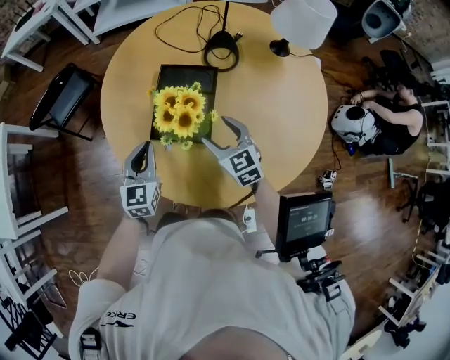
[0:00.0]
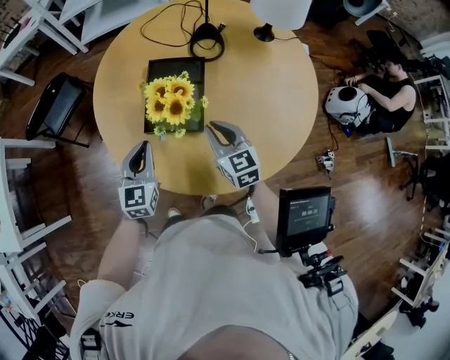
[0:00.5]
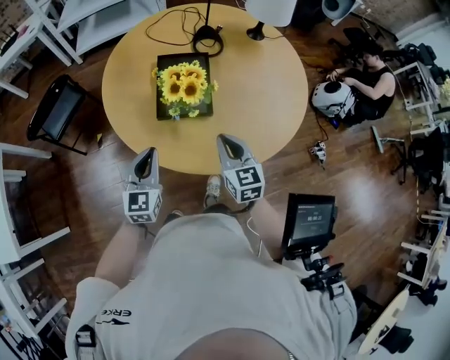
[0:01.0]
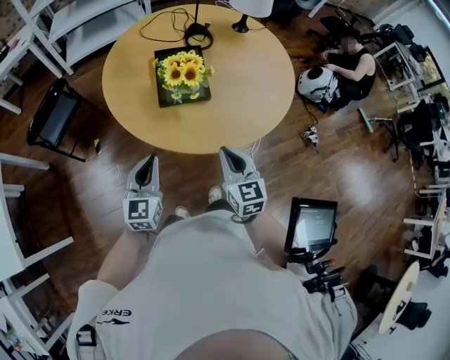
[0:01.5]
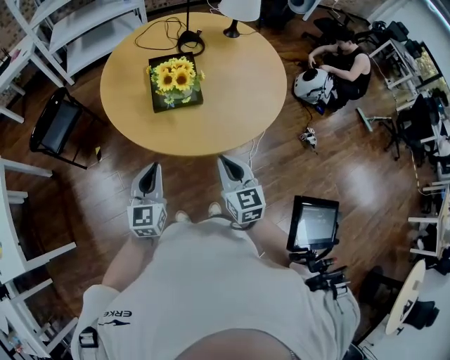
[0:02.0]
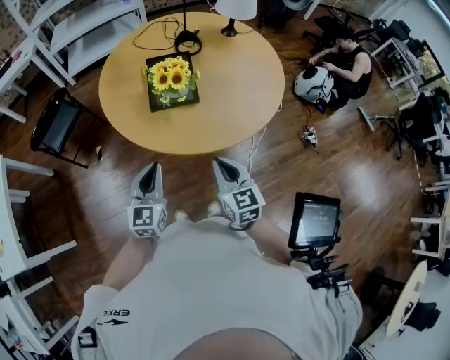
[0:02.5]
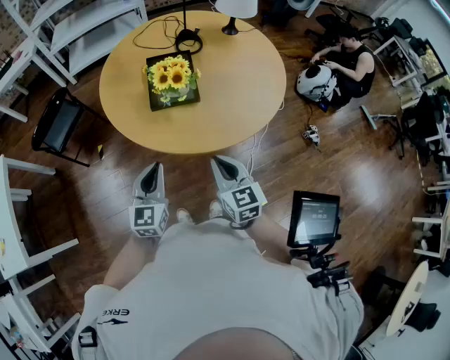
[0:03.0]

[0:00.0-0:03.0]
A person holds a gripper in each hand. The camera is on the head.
0:00.0 to 0:01.5: The left gripper shifts by some 20 cm, and changes its angle by some 20 degrees; the right gripper shifts by approximately 30 cm, turns by approximately 30 degrees, and closes.
0:01.5 to 0:03.0: The left gripper goes some 5 cm to the right.

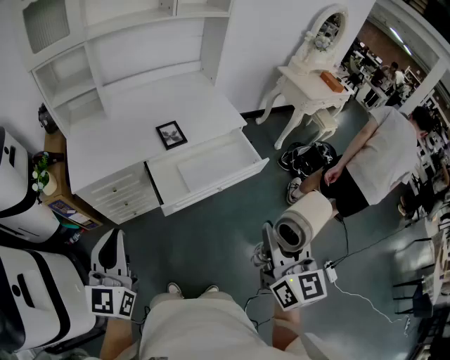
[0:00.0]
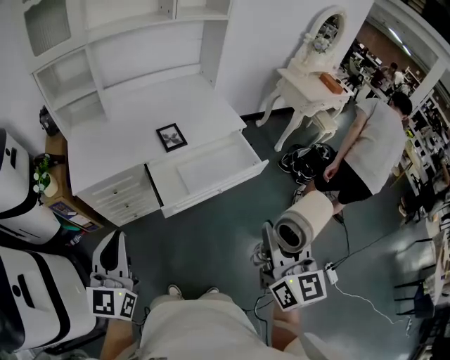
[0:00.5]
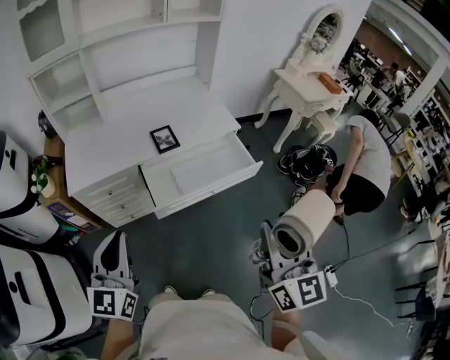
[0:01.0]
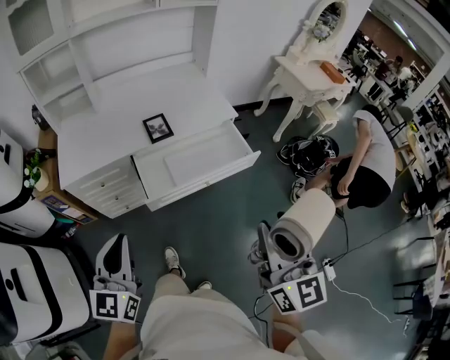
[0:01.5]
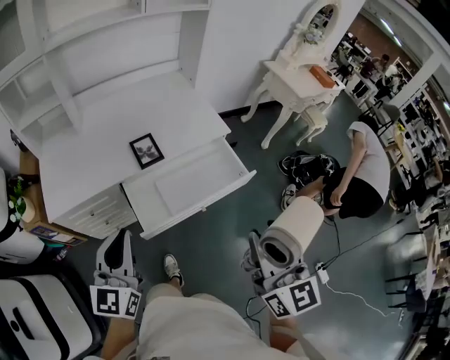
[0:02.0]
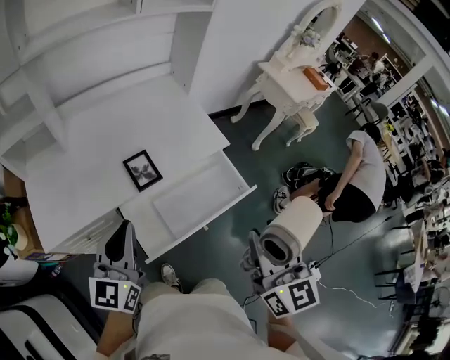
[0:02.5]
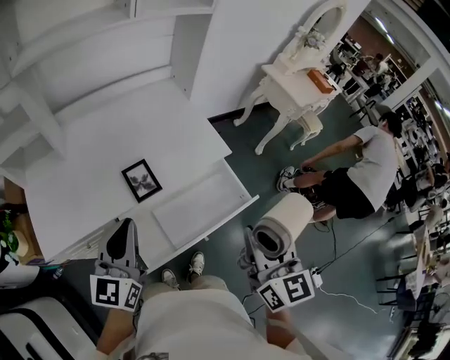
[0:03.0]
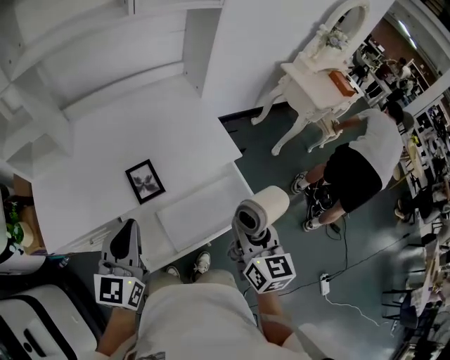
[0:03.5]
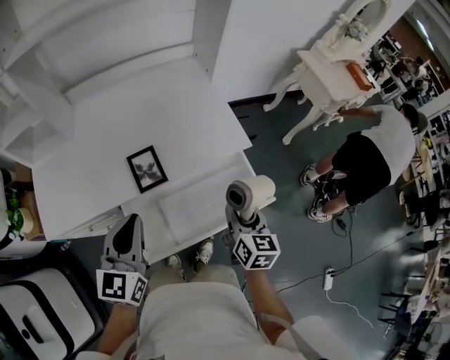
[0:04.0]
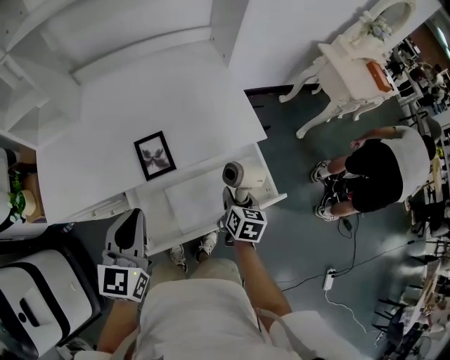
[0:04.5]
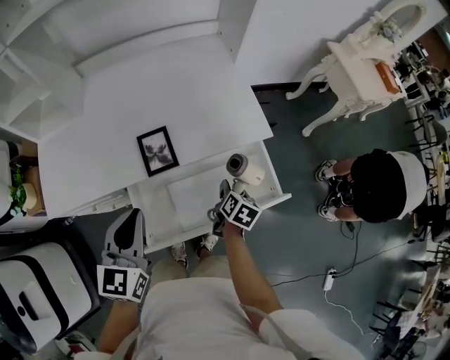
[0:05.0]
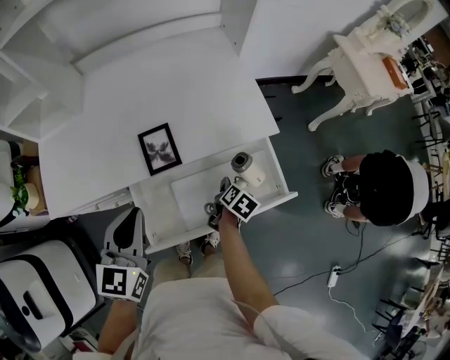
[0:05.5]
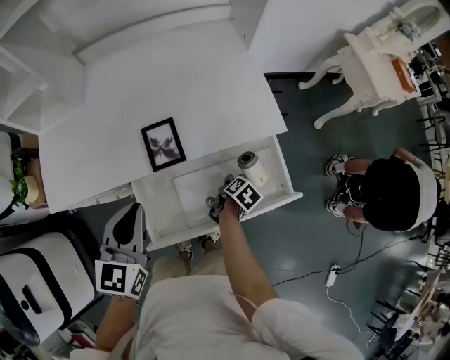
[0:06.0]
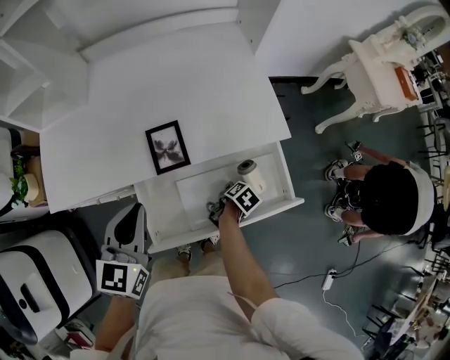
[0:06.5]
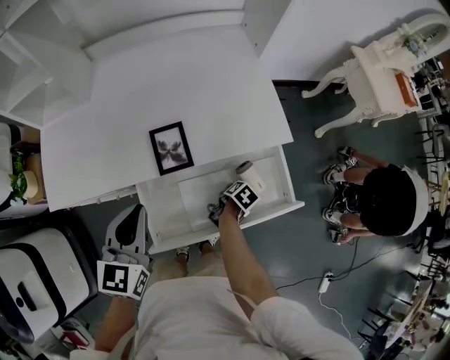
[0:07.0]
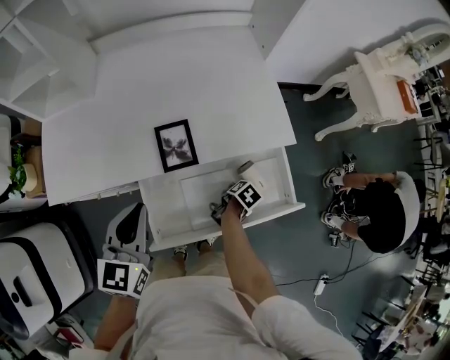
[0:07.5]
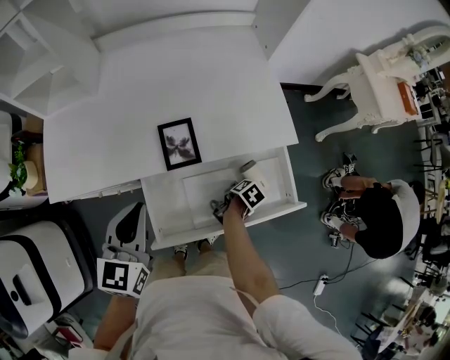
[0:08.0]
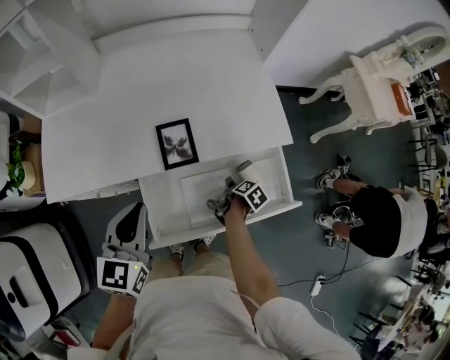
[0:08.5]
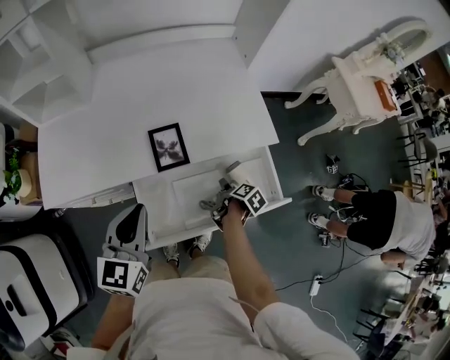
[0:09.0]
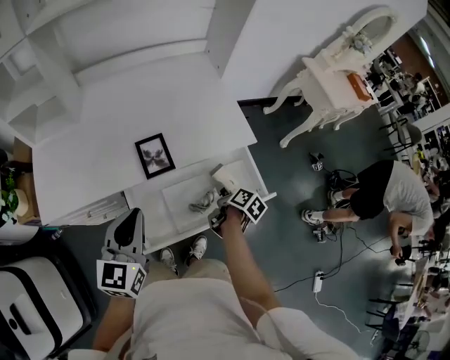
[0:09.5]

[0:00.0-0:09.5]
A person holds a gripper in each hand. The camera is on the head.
0:00.0 to 0:02.0: The left gripper travels forward and to the right by about 15 cm. The right gripper shifts approximately 10 cm forward.
0:02.0 to 0:04.0: The right gripper travels forward and downward by some 35 cm, and changes its angle by roughly 30 degrees, while the left gripper goes about 20 cm forward.
0:04.0 to 0:05.5: The right gripper is displaced downward by roughly 20 cm, and swivels about 40 degrees.
0:05.5 to 0:07.5: The right gripper goes about 5 cm downward.
0:07.5 to 0:09.5: The left gripper moves roughly 5 cm. The right gripper goes approximately 15 cm upward, changes its angle by about 30 degrees, and opens and closes again.

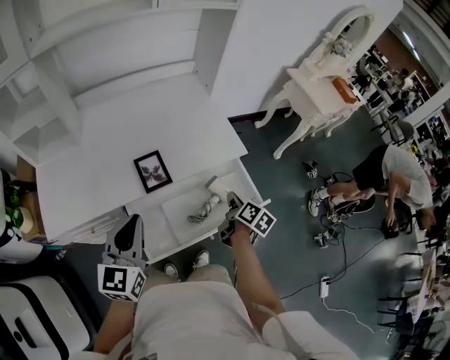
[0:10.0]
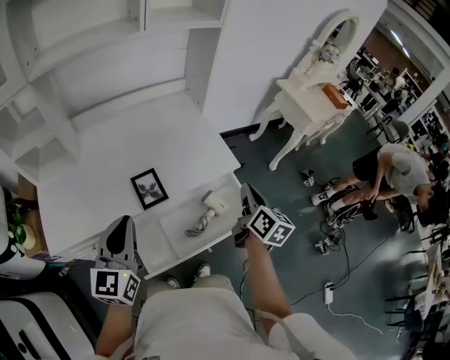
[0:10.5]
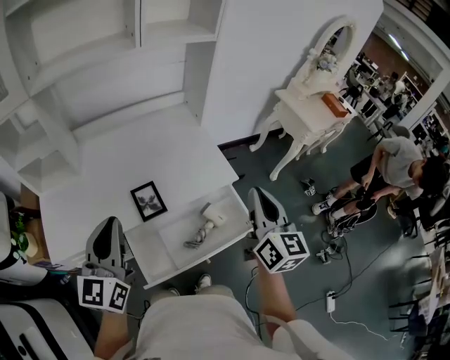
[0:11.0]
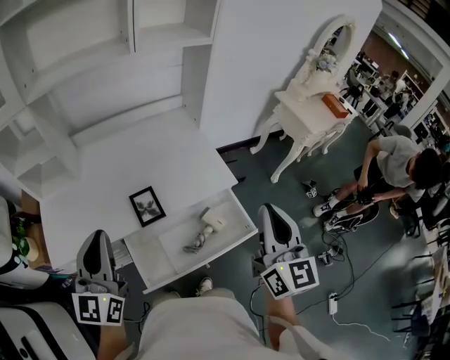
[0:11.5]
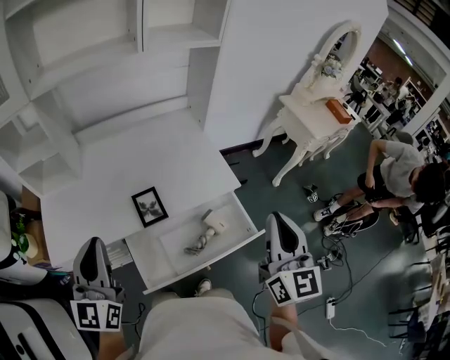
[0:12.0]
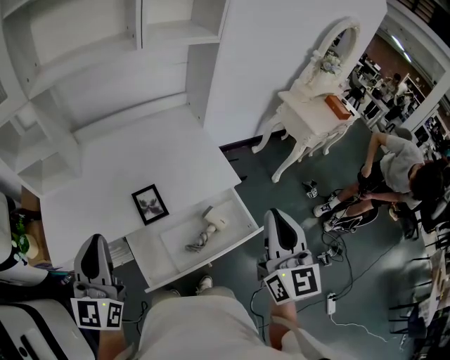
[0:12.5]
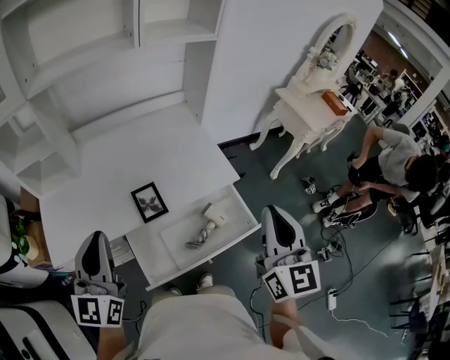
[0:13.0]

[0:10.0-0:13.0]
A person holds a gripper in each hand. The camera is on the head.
0:10.0 to 0:11.5: The right gripper travels upward by some 35 cm, and points its fingers about 30 degrees further upward. Meanwhile the left gripper heads upward, covering some 15 cm.
0:11.5 to 0:13.0: The grippers make only small movements.

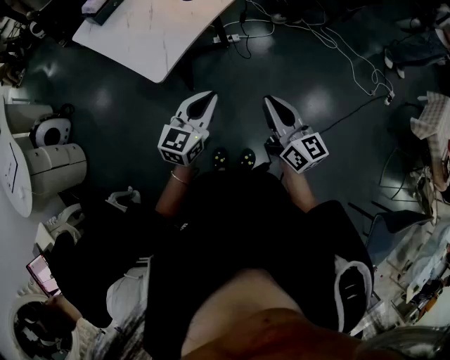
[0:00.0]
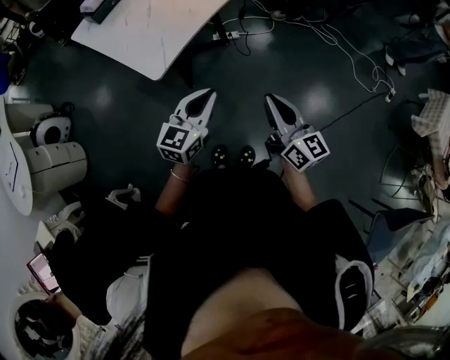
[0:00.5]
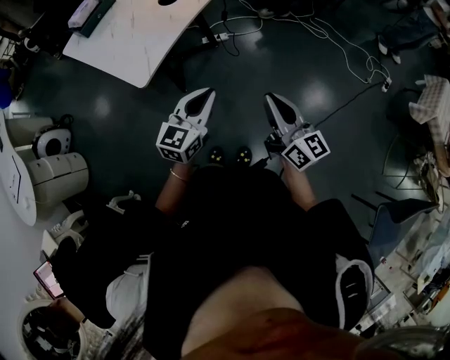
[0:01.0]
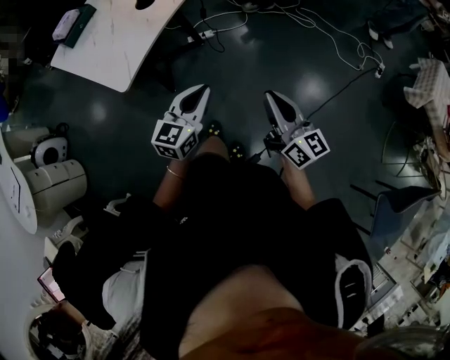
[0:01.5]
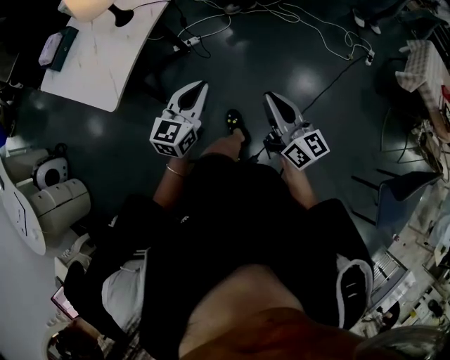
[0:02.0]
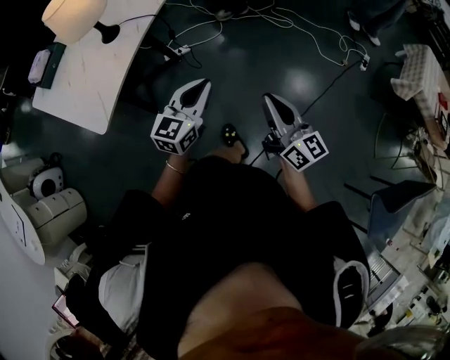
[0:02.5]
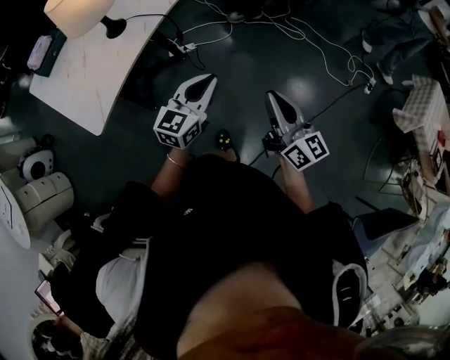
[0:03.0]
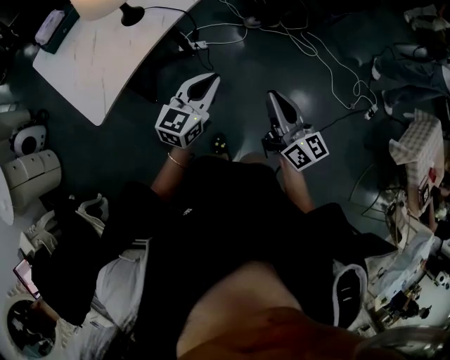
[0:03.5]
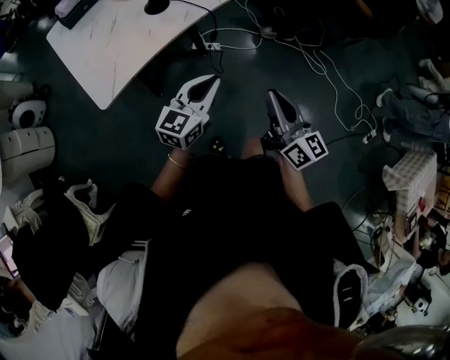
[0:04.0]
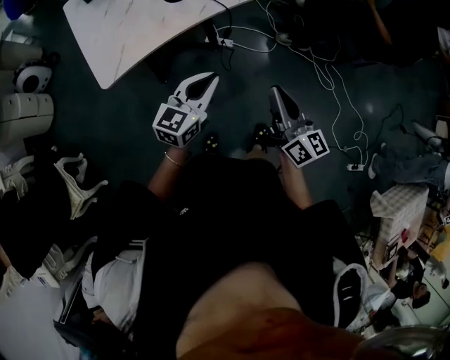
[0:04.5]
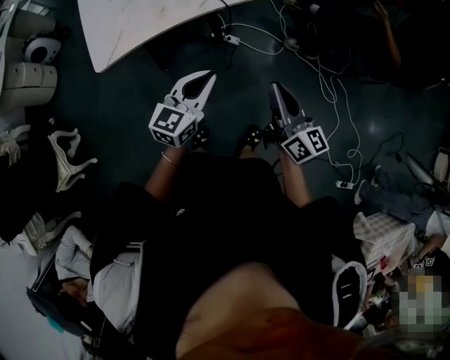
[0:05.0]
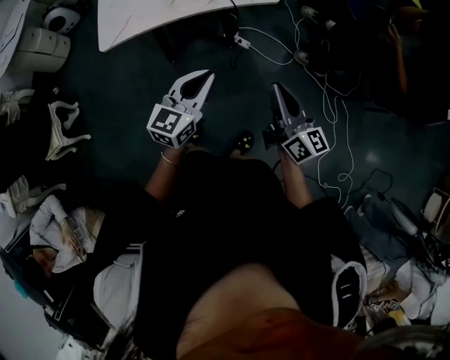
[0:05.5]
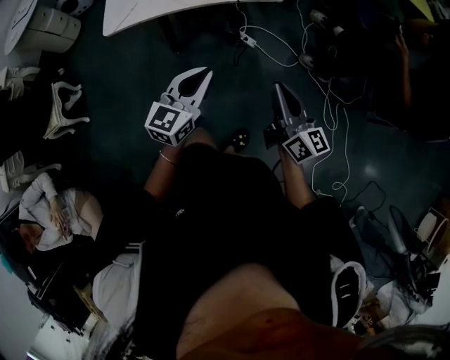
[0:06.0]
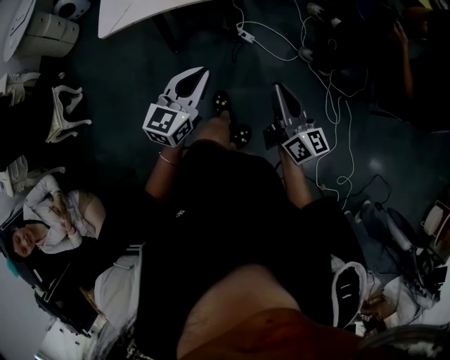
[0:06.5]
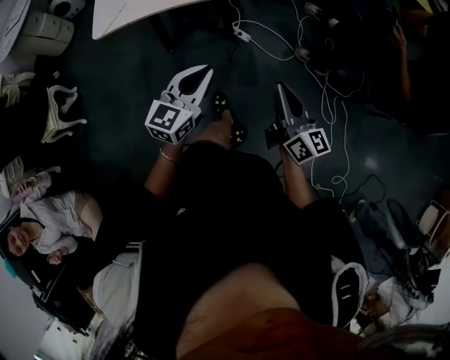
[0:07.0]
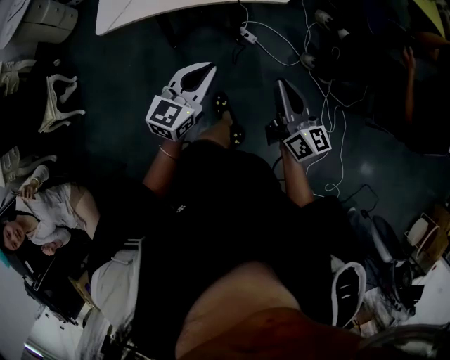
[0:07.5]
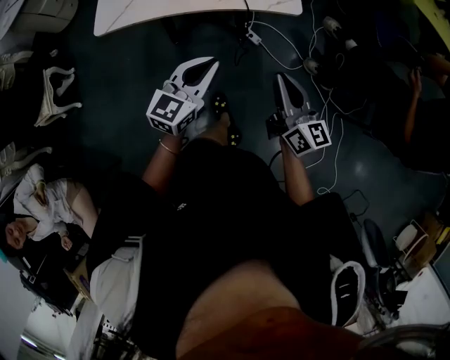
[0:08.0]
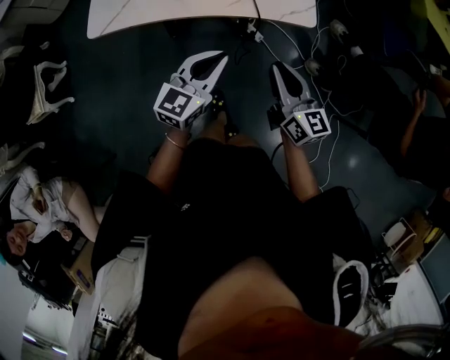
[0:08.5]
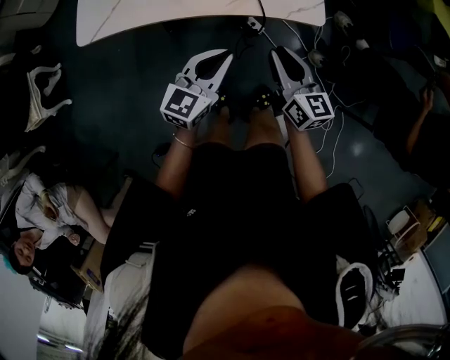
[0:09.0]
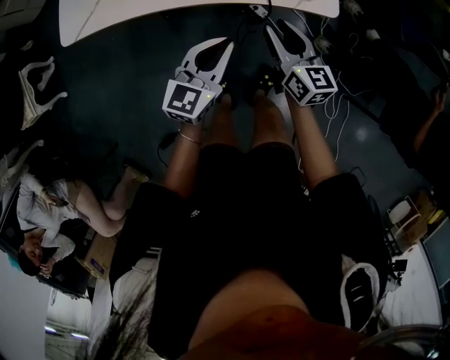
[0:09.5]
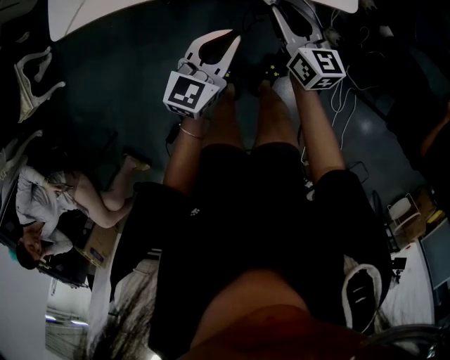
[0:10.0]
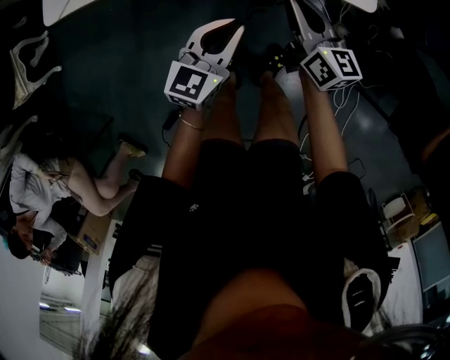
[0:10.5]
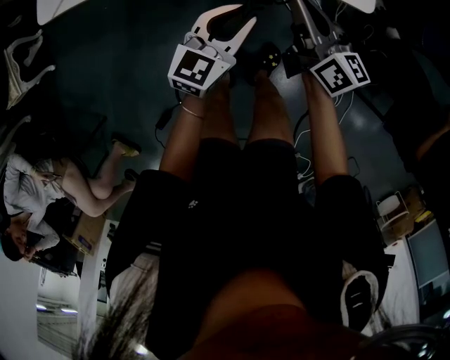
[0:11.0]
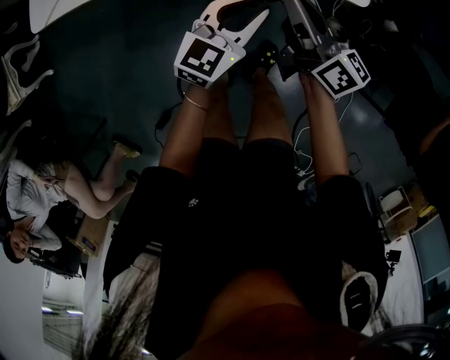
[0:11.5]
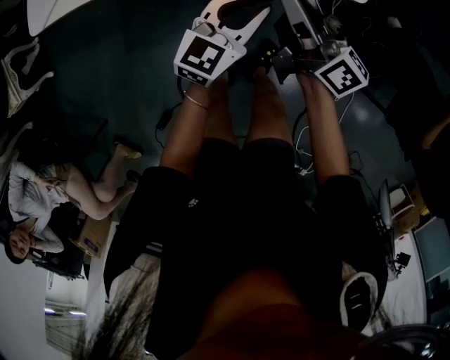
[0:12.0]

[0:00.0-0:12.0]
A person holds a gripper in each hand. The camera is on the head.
0:00.0 to 0:02.0: Both grippers move to the right, approximately 15 cm.
0:02.0 to 0:04.0: The two grippers go approximately 20 cm forward. The right gripper swivels about 20 degrees.
0:04.0 to 0:06.0: The left gripper shifts by roughly 10 cm, and swivels approximately 40 degrees; the right gripper ends up about 15 cm from where it was, and changes its angle by roughly 30 degrees.
0:06.0 to 0:08.0: Both grippers move forward, roughly 10 cm.
0:08.0 to 0:10.0: The right gripper shifts roughly 25 cm forward, downward and to the left, and opens up, while the left gripper travels downward and forward by approximately 15 cm.
0:10.0 to 0:12.0: The left gripper heads to the right, covering approximately 5 cm; the right gripper moves upward, about 5 cm, rotates approximately 40 degrees, and closes its fingers.
